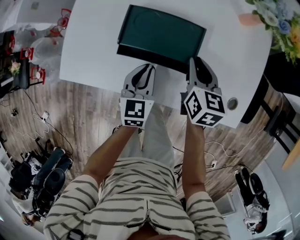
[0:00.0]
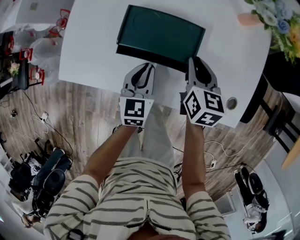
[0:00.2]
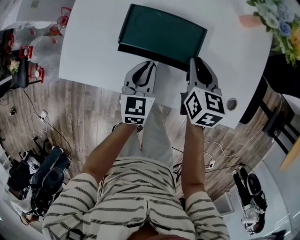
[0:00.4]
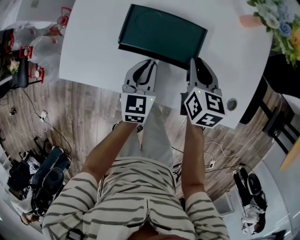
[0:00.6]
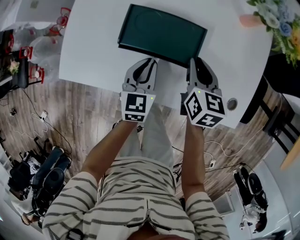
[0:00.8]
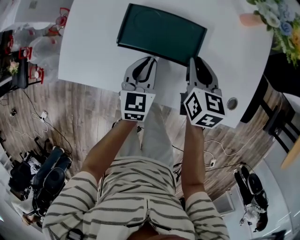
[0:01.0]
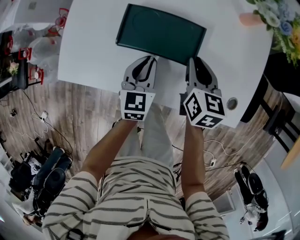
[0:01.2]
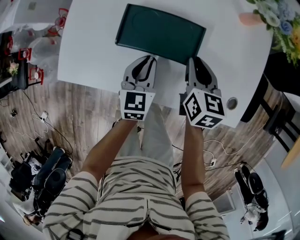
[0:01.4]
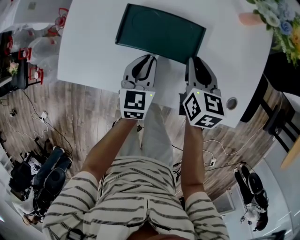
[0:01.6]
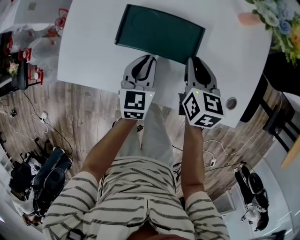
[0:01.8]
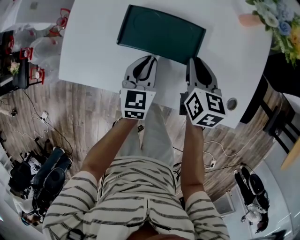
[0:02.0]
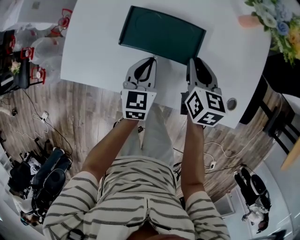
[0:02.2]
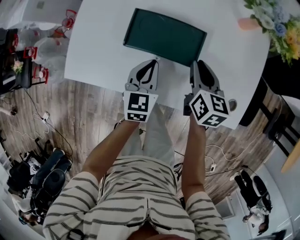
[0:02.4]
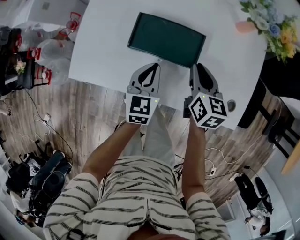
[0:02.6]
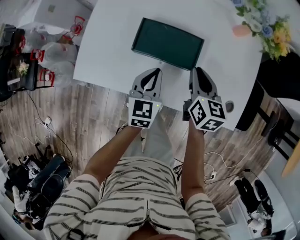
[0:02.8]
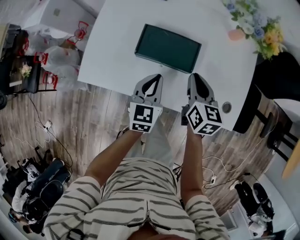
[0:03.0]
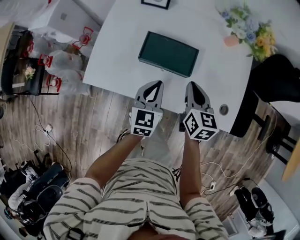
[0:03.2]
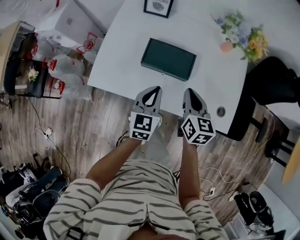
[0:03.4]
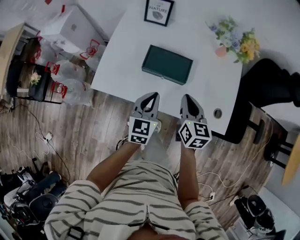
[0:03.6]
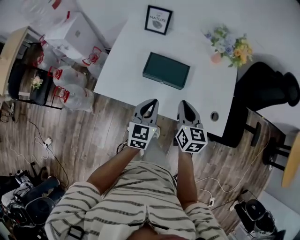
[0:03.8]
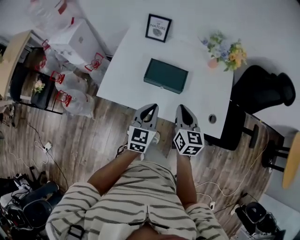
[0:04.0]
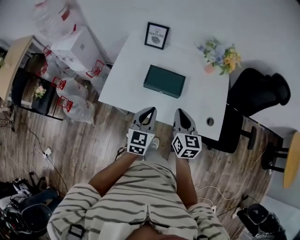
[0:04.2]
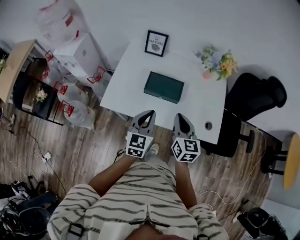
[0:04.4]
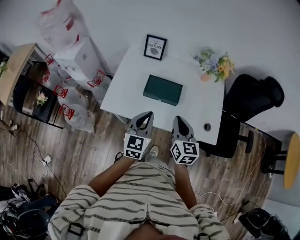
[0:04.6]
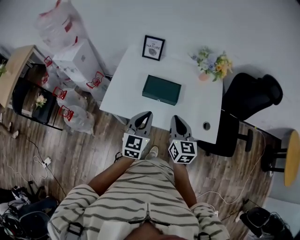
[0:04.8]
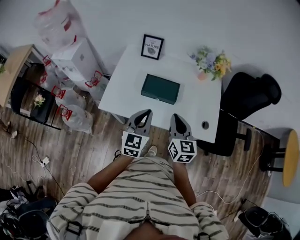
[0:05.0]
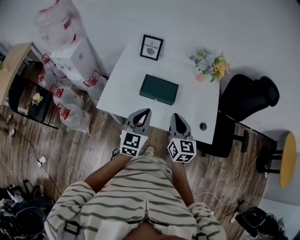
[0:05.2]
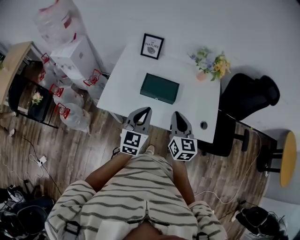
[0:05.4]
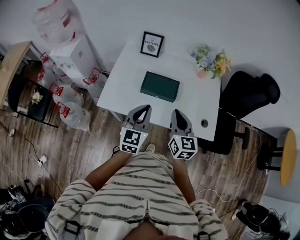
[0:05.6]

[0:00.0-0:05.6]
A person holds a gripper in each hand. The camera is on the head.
0:00.0 to 0:01.4: The grippers move only a little.
0:01.4 to 0:02.8: The two grippers go approximately 5 cm upward.
0:02.8 to 0:04.2: The grippers both shift upward and backward by approximately 25 cm.
0:04.2 to 0:05.6: The left gripper moves upward, some 5 cm.

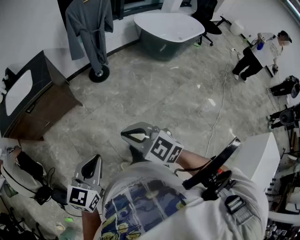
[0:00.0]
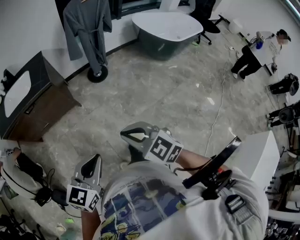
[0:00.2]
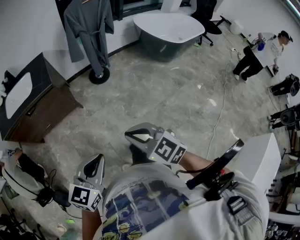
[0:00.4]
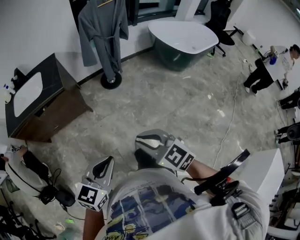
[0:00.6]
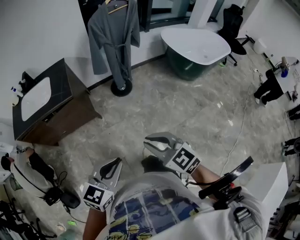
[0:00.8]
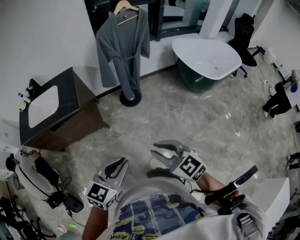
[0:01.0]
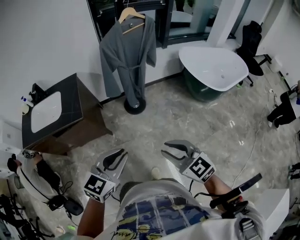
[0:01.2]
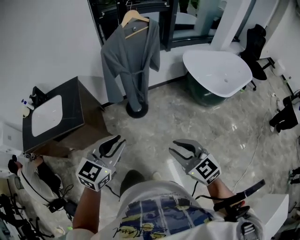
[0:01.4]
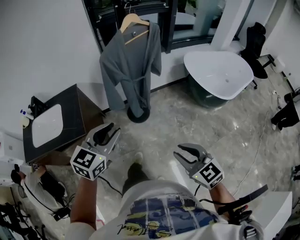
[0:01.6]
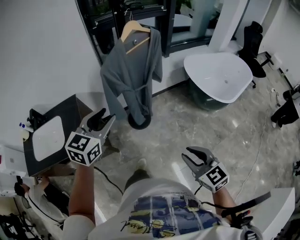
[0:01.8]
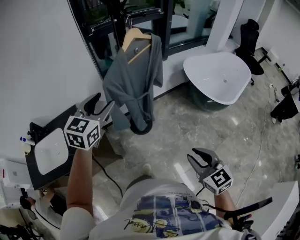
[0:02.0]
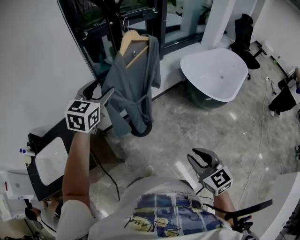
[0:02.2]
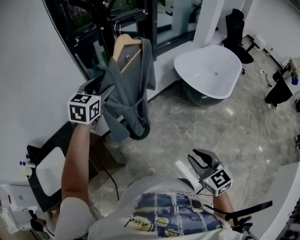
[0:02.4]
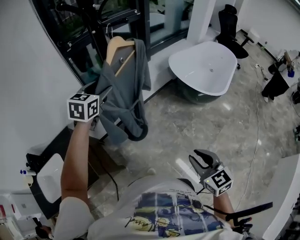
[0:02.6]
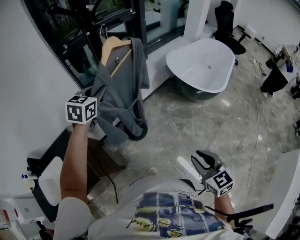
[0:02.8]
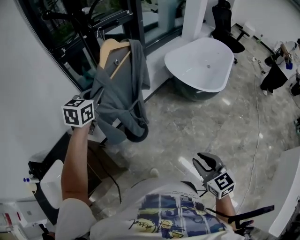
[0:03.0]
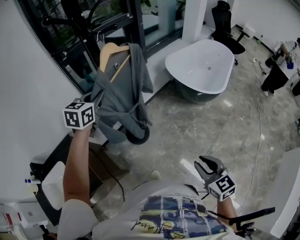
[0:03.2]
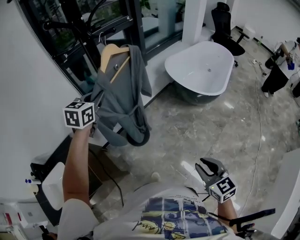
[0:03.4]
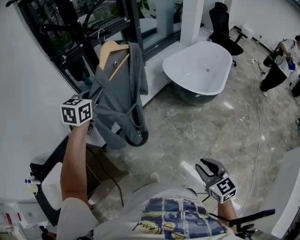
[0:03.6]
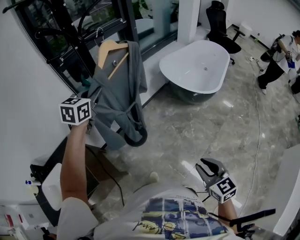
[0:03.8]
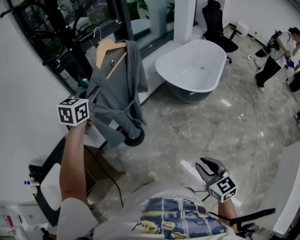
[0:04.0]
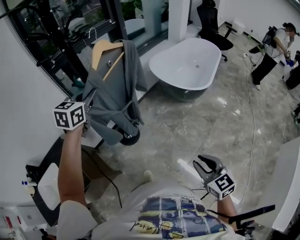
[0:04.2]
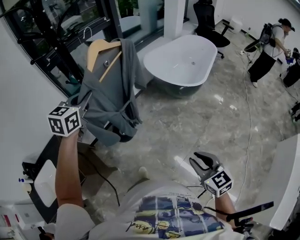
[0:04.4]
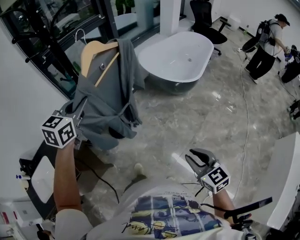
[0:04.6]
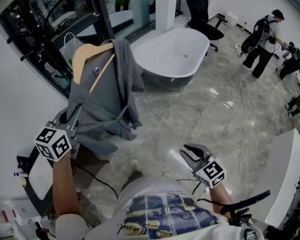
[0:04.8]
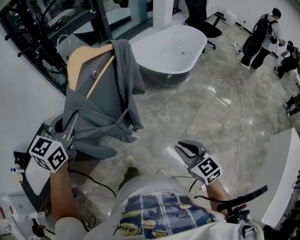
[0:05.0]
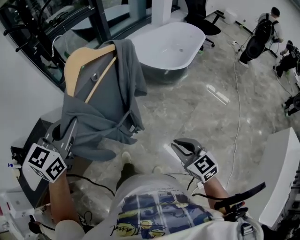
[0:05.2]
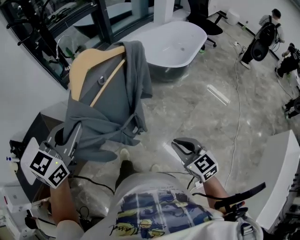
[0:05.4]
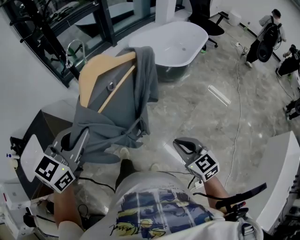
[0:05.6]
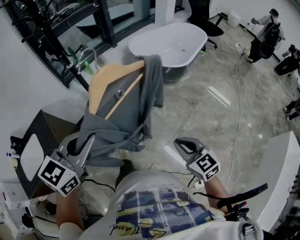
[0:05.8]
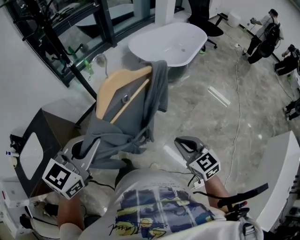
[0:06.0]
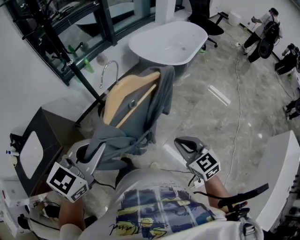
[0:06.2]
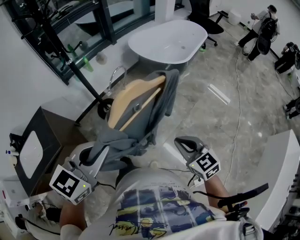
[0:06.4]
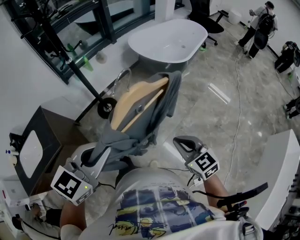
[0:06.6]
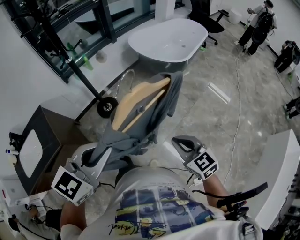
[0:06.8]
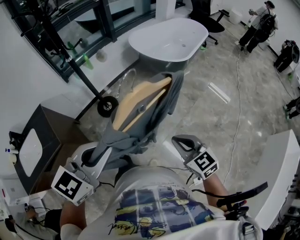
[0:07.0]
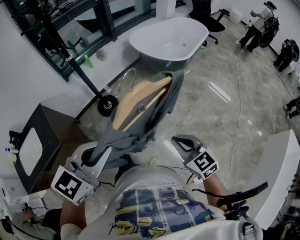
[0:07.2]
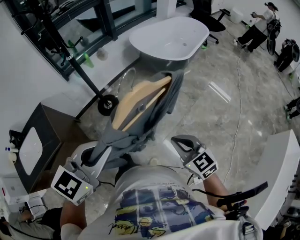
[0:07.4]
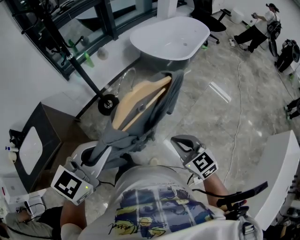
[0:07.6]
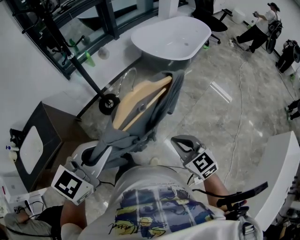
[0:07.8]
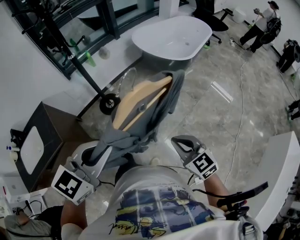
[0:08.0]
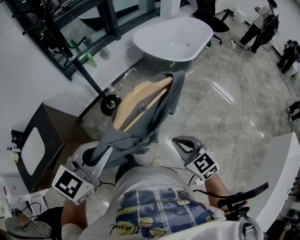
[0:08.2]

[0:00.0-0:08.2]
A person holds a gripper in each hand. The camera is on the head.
0:00.0 to 0:01.6: The two grippers go some 40 cm forward. The left gripper opens its fingers. The right gripper opens its fingers.
0:01.6 to 0:03.2: The right gripper travels forward by some 10 cm, and changes its angle by about 40 degrees, while the left gripper goes some 40 cm forward, and closes up.
0:03.2 to 0:05.0: The left gripper goes about 30 cm backward and to the right, while the right gripper is displaced to the right and backward by approximately 20 cm.
0:05.0 to 0:06.6: The left gripper travels backward and to the right by roughly 25 cm; the right gripper moves backward, approximately 5 cm.
0:06.6 to 0:08.2: The grippers move only a little.

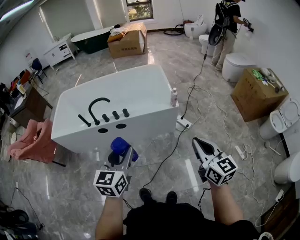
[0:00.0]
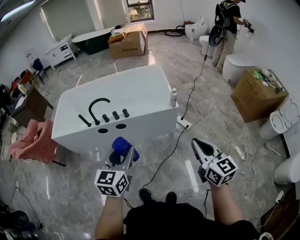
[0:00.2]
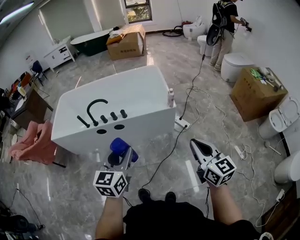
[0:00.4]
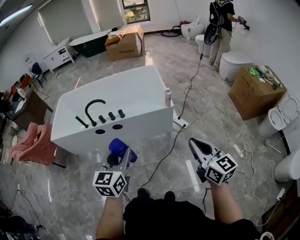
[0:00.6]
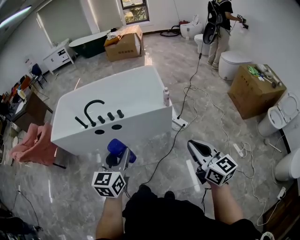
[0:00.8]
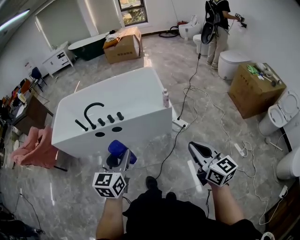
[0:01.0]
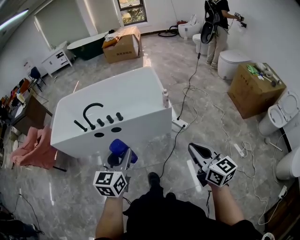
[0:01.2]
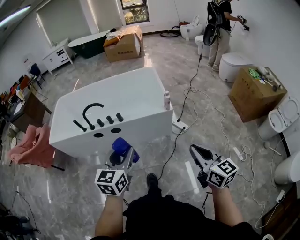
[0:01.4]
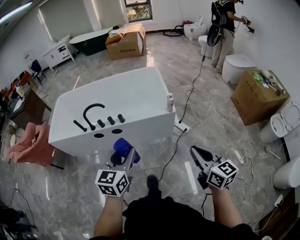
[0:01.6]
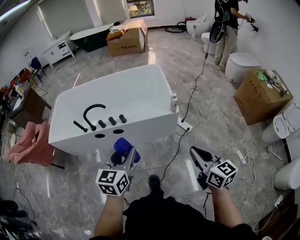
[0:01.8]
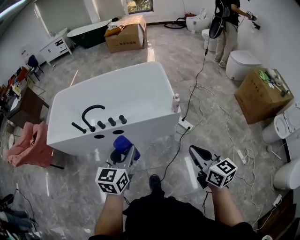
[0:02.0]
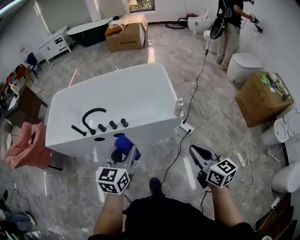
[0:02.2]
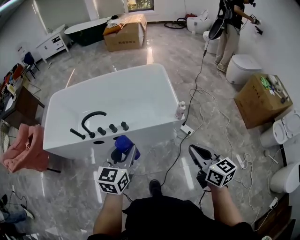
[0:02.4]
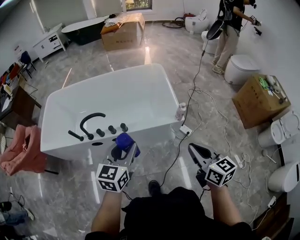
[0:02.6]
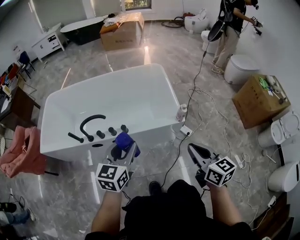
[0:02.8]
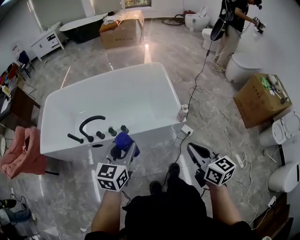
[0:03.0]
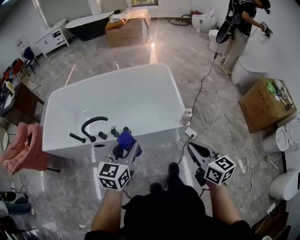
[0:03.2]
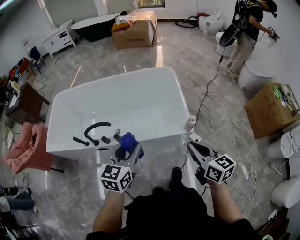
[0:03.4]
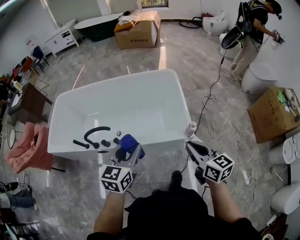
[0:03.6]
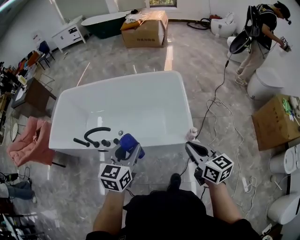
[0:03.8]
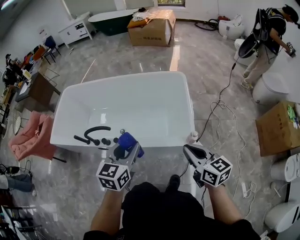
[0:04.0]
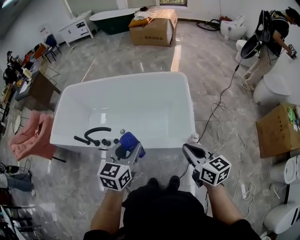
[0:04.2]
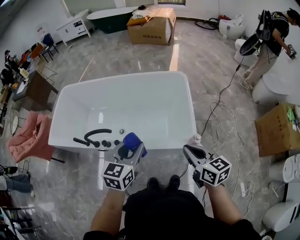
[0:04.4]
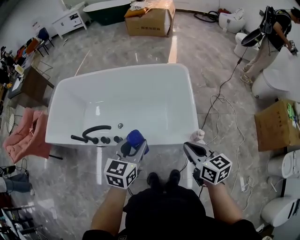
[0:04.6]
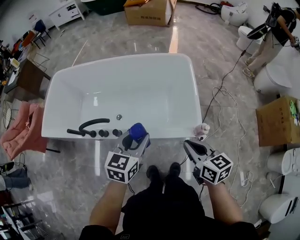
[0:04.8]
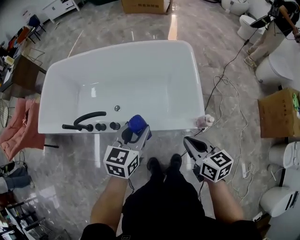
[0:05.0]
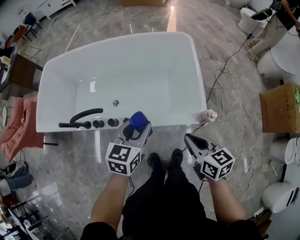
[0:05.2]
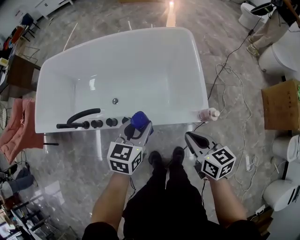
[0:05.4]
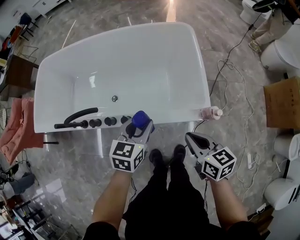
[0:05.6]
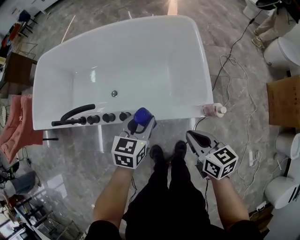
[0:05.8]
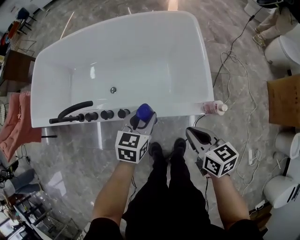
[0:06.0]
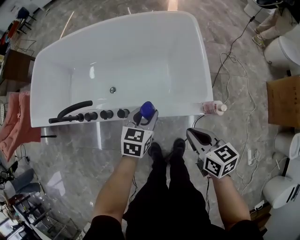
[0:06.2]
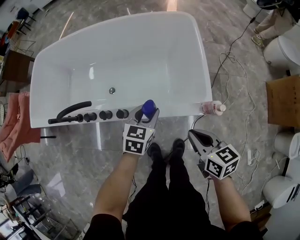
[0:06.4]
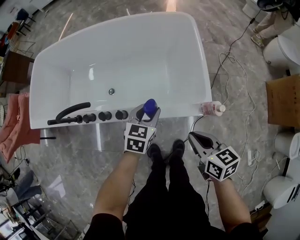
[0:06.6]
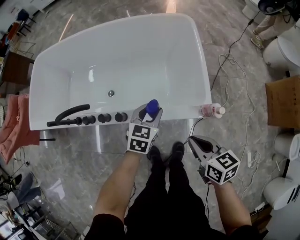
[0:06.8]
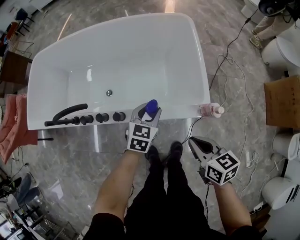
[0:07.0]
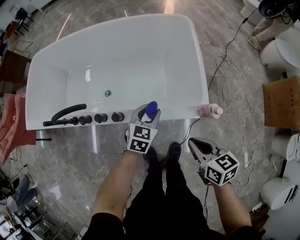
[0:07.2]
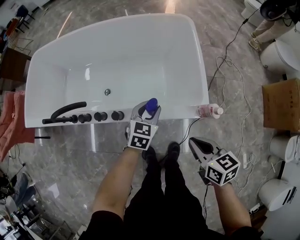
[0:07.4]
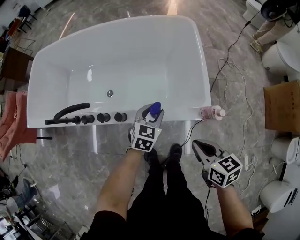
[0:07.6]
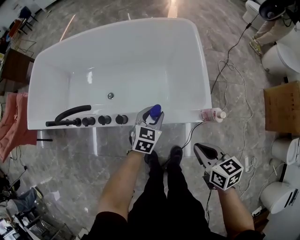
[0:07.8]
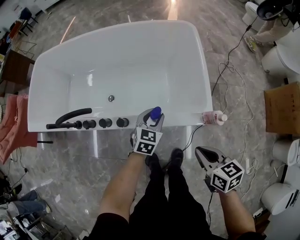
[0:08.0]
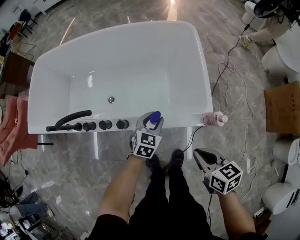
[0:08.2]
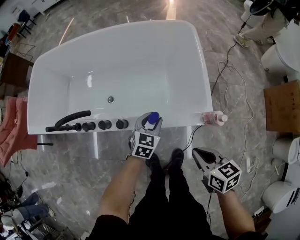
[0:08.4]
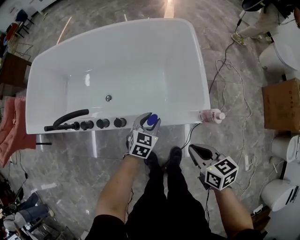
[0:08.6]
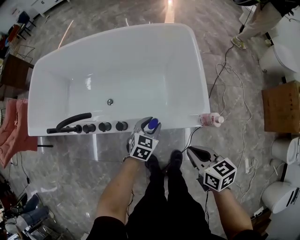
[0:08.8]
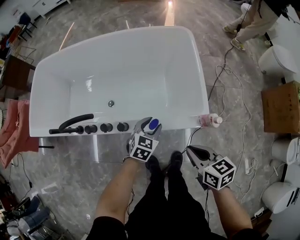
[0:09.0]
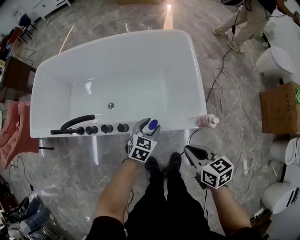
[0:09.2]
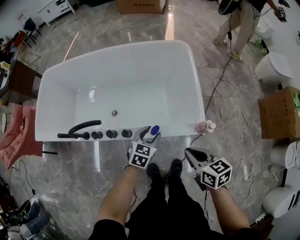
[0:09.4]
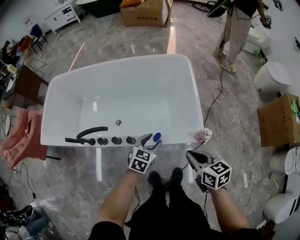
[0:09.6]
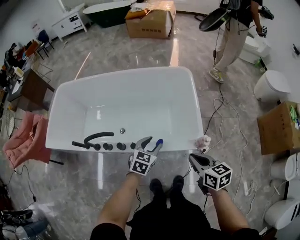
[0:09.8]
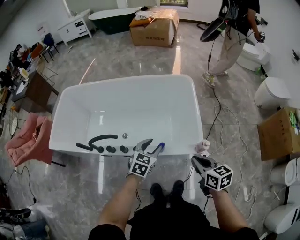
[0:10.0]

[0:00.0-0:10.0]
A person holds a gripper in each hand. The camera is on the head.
0:00.0 to 0:01.4: The left gripper is displaced to the right by roughly 5 cm; the right gripper shifts by about 5 cm.
0:01.4 to 0:02.8: The left gripper moves forward, about 25 cm. The right gripper travels forward and to the left by some 25 cm.
0:02.8 to 0:04.2: The left gripper heads forward and to the right, covering approximately 15 cm. The right gripper goes some 20 cm forward.
0:04.2 to 0:05.8: The grippers both shift downward by about 20 cm.
0:05.8 to 0:07.2: The left gripper heads downward, covering some 10 cm.
0:07.2 to 0:08.6: The grippers move only a little.
0:08.6 to 0:10.0: The two grippers go some 15 cm upward.
